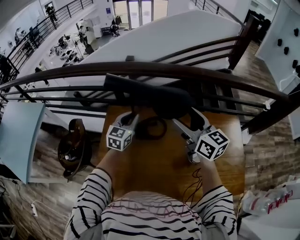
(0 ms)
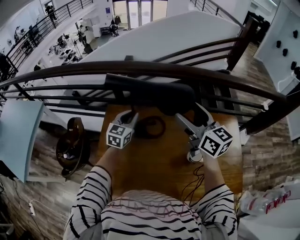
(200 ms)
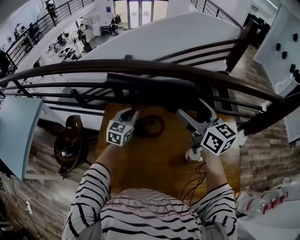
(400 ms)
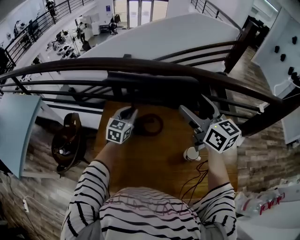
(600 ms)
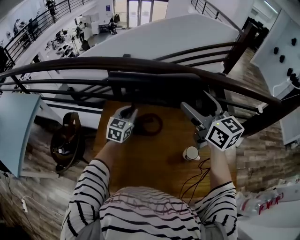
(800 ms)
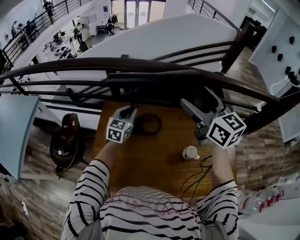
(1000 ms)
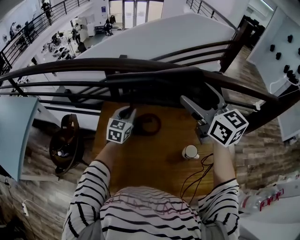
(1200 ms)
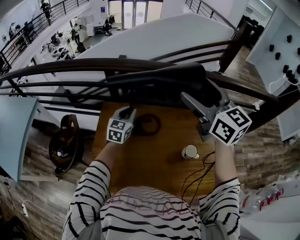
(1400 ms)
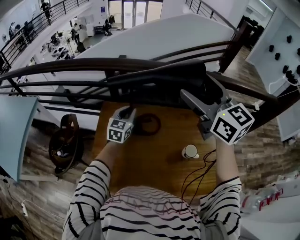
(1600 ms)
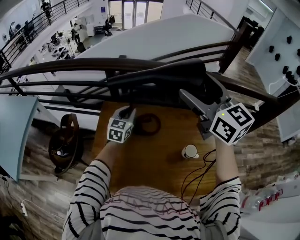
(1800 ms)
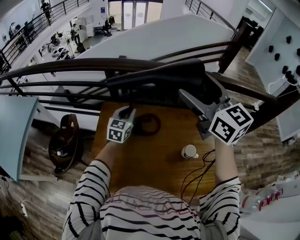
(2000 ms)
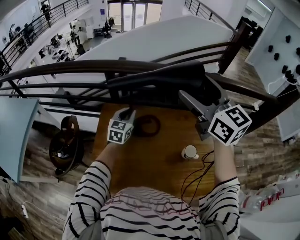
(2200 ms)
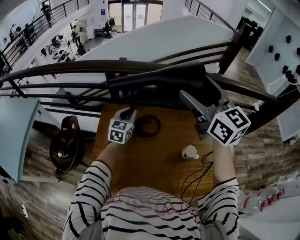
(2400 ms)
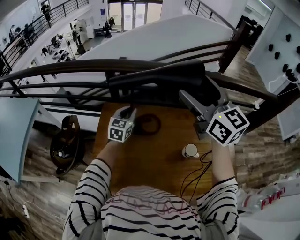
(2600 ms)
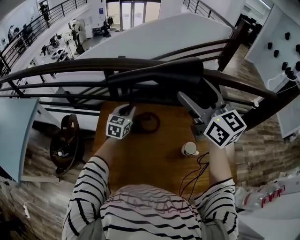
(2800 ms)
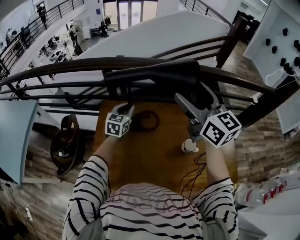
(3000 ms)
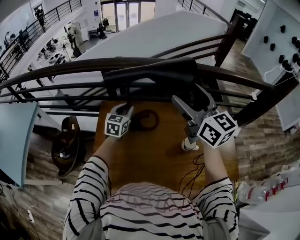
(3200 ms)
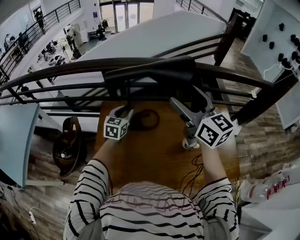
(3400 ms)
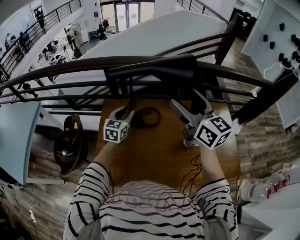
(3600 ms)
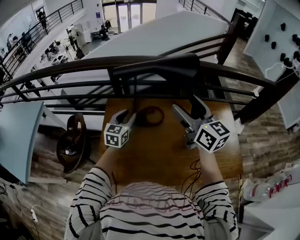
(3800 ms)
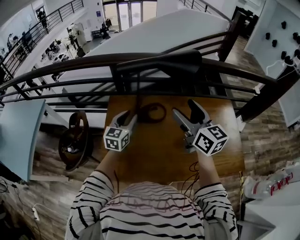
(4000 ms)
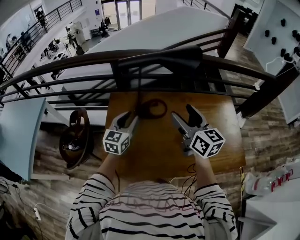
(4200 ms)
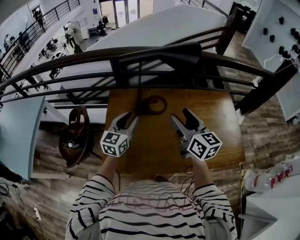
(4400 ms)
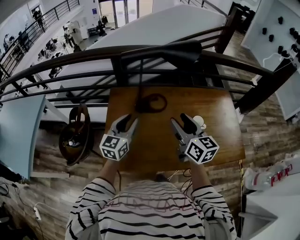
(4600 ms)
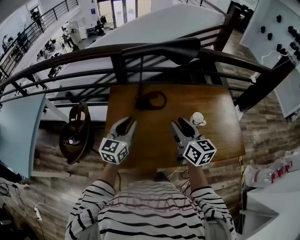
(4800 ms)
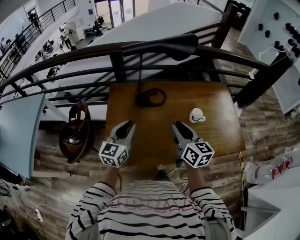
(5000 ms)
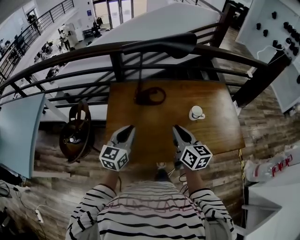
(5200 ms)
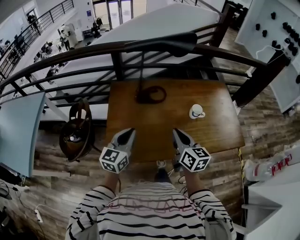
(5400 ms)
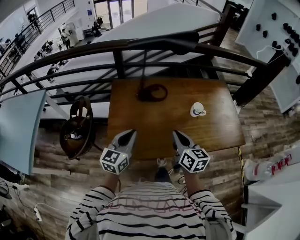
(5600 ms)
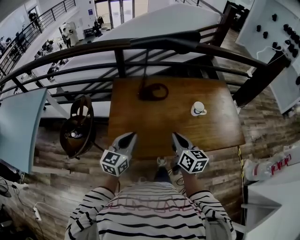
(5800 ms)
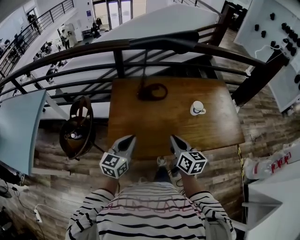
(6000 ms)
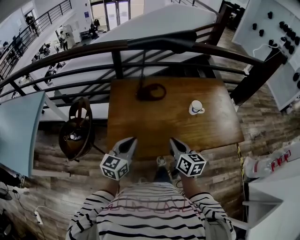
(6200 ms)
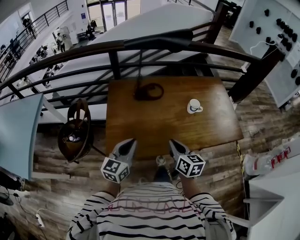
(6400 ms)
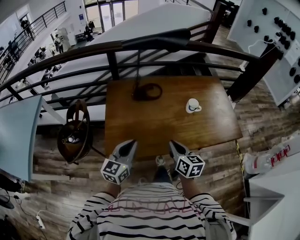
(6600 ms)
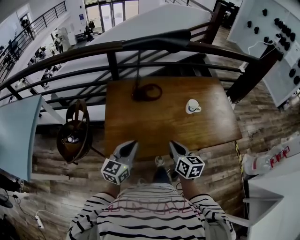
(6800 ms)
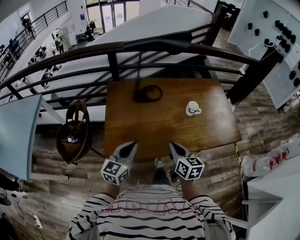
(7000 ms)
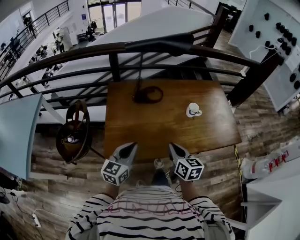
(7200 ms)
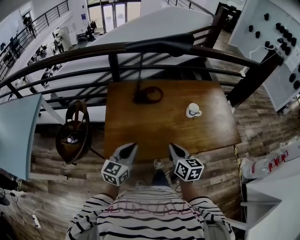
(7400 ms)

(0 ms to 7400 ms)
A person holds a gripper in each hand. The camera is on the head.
0 ms - 1400 ms: The right gripper shifts some 15 cm upward.
1400 ms - 3000 ms: The grippers make only small movements.
3000 ms - 4400 ms: The right gripper is displaced backward and downward by roughly 20 cm, while the left gripper heads backward, covering some 20 cm.
4400 ms - 6000 ms: The left gripper is displaced backward by about 25 cm, and closes its fingers; the right gripper shifts some 25 cm backward and downward, and closes its fingers.
6000 ms - 7400 ms: There are only small adjustments of the grippers.

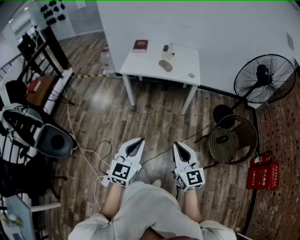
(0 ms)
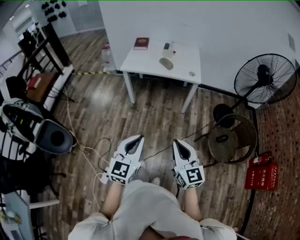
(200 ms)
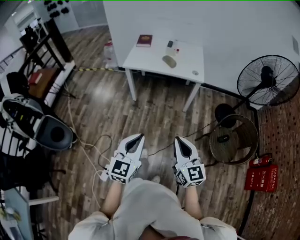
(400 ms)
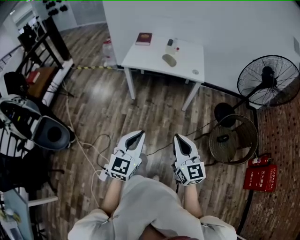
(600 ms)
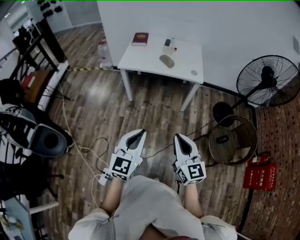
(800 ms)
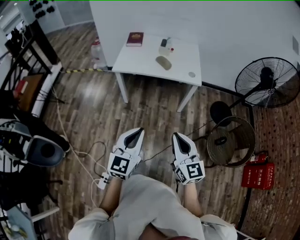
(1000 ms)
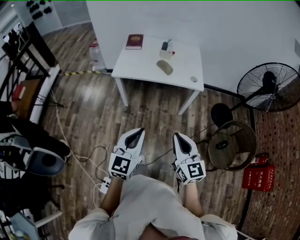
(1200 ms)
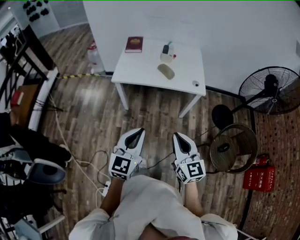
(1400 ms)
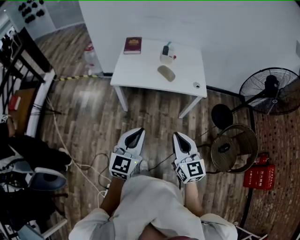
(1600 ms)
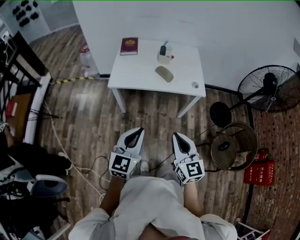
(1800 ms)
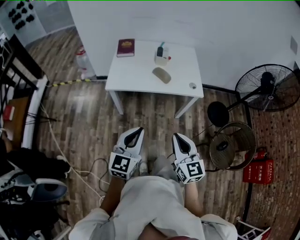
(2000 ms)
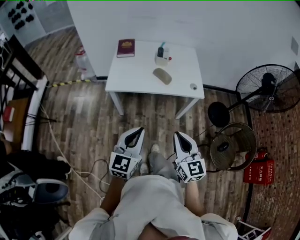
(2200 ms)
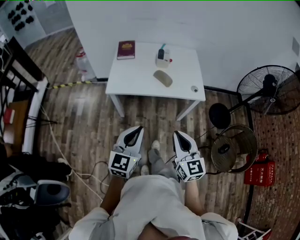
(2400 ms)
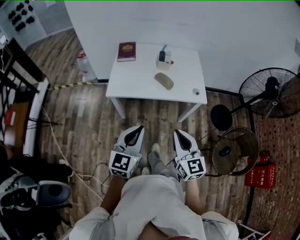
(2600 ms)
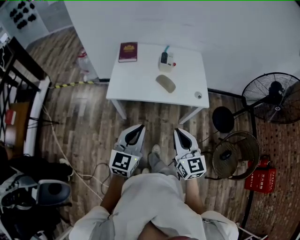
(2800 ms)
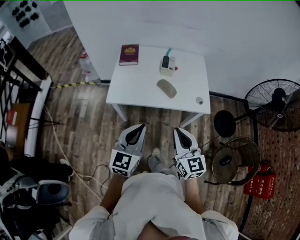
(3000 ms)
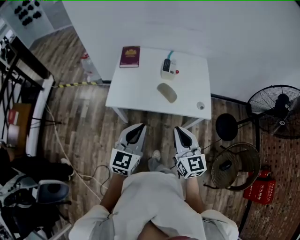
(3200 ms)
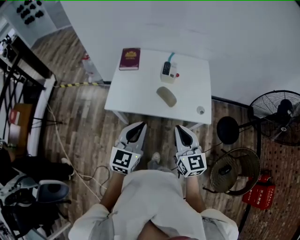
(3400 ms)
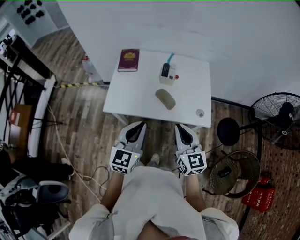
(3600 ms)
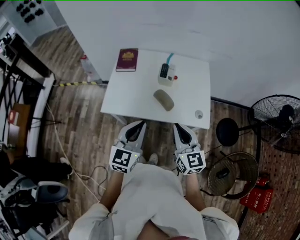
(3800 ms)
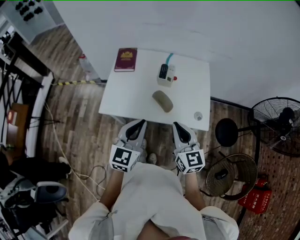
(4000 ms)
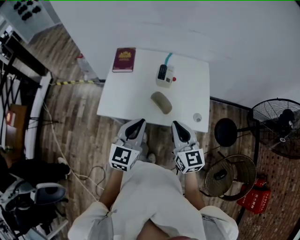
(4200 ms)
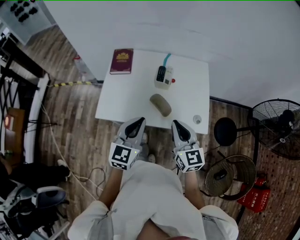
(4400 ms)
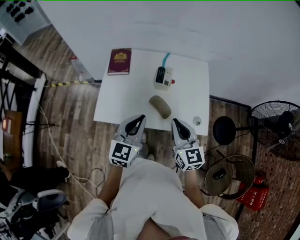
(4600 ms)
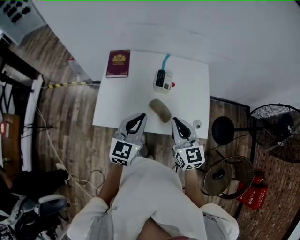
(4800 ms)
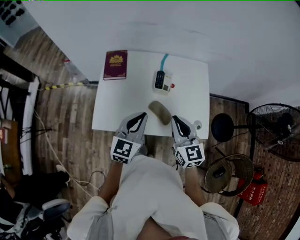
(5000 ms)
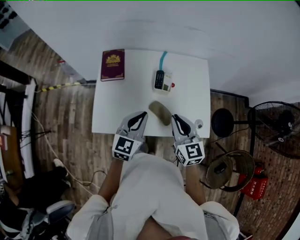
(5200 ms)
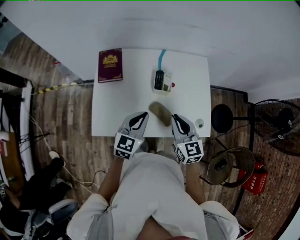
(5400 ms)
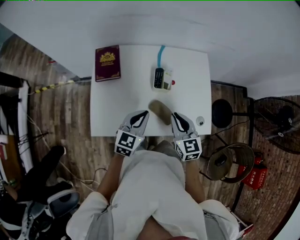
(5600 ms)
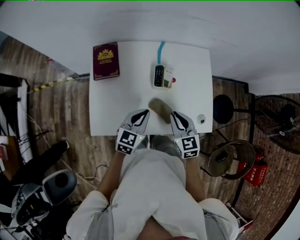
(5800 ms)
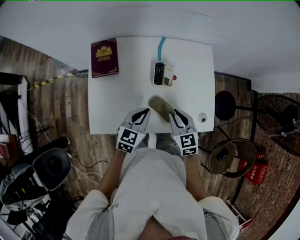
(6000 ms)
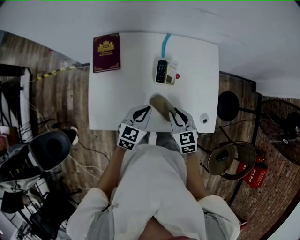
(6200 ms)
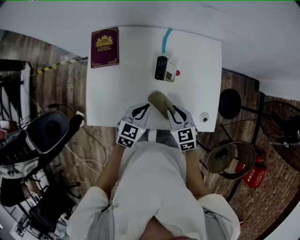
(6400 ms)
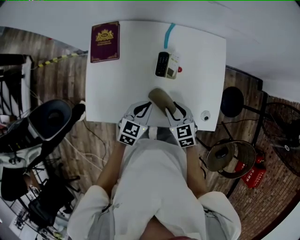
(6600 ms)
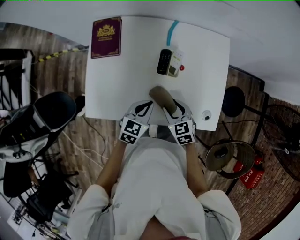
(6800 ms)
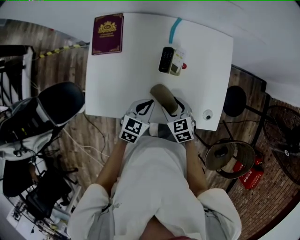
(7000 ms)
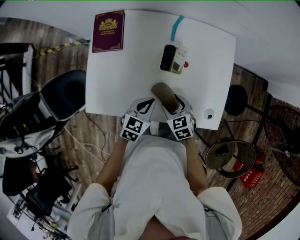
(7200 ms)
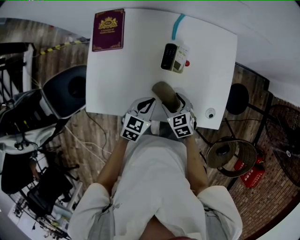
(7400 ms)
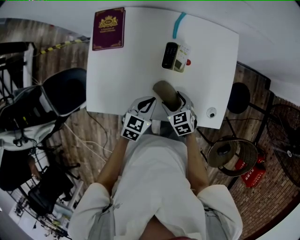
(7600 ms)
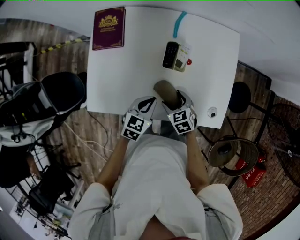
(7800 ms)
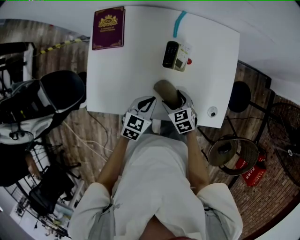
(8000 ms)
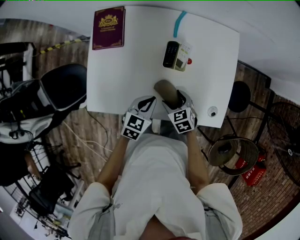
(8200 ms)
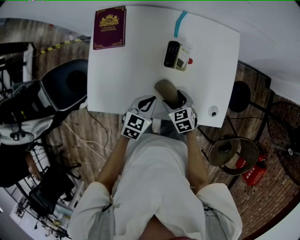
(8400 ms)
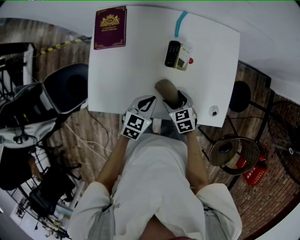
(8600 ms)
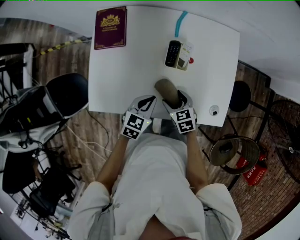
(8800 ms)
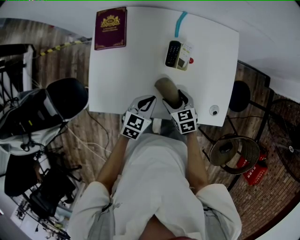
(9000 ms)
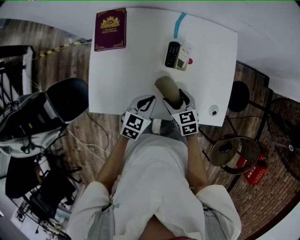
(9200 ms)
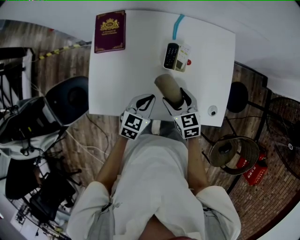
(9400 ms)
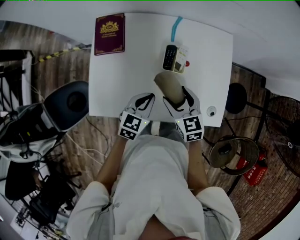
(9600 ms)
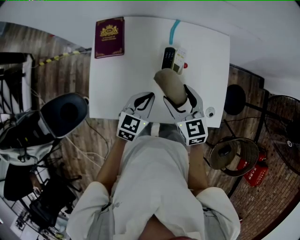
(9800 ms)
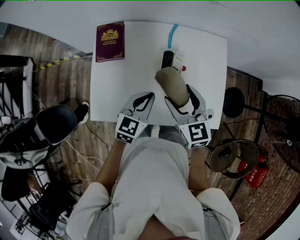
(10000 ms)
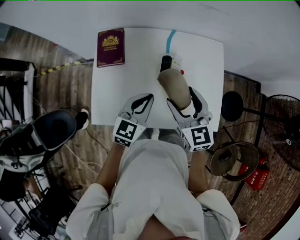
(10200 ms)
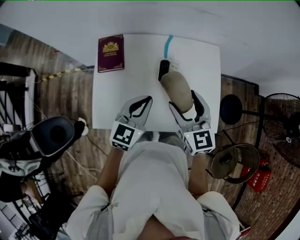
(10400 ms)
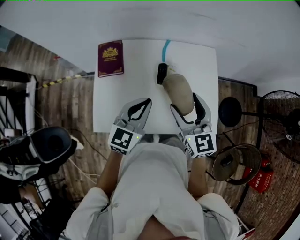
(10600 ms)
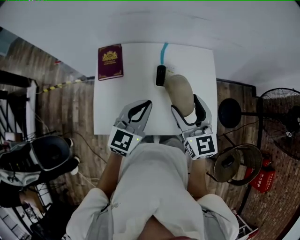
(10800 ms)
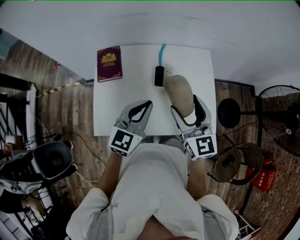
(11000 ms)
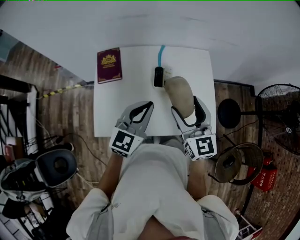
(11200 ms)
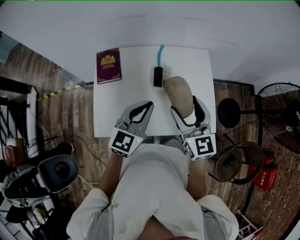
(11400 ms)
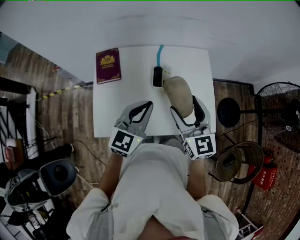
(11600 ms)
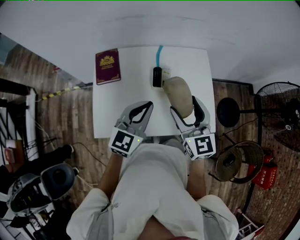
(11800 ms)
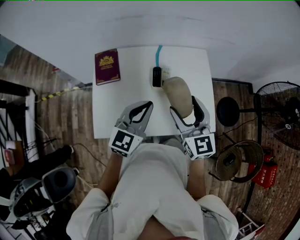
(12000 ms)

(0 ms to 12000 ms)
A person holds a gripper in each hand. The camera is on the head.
0 ms - 1600 ms: Both grippers move forward, some 25 cm.
1600 ms - 3000 ms: The two grippers go about 20 cm forward.
3000 ms - 4400 ms: The two grippers go some 20 cm forward.
4400 ms - 6000 ms: The two grippers go approximately 20 cm forward and downward. The right gripper changes its angle by approximately 30 degrees. Meanwhile the left gripper changes its angle by approximately 20 degrees.
6000 ms - 7600 ms: The right gripper moves downward, about 15 cm, rotates about 20 degrees, and opens. Meanwhile the left gripper goes about 10 cm downward.
7600 ms - 9000 ms: There are only small adjustments of the grippers.
9000 ms - 10400 ms: The two grippers go some 20 cm upward. The right gripper angles its fingers upward, by some 30 degrees. The left gripper turns by some 20 degrees.
10400 ms - 12000 ms: The left gripper changes place by approximately 5 cm; the right gripper ends up some 5 cm from where it was.

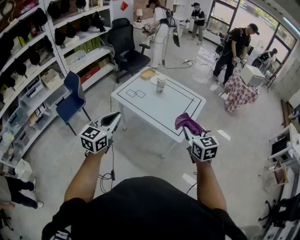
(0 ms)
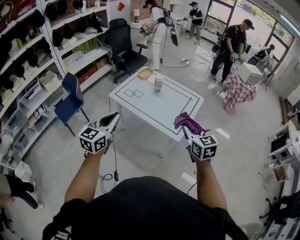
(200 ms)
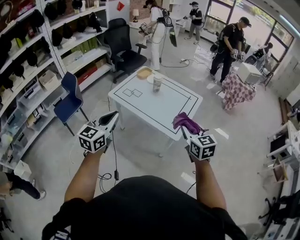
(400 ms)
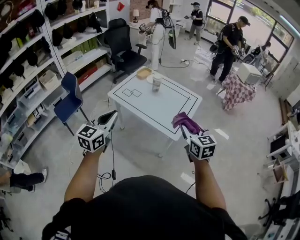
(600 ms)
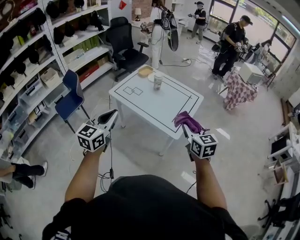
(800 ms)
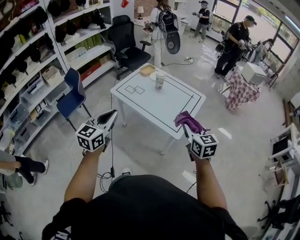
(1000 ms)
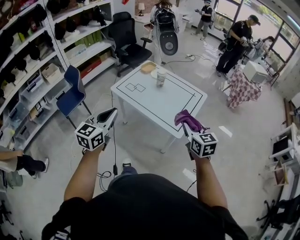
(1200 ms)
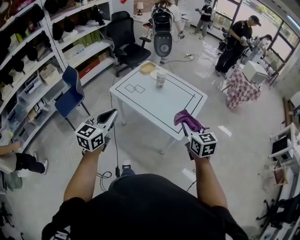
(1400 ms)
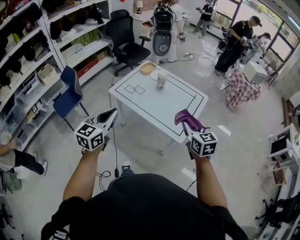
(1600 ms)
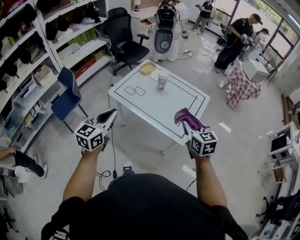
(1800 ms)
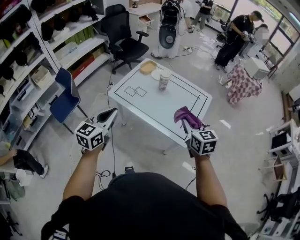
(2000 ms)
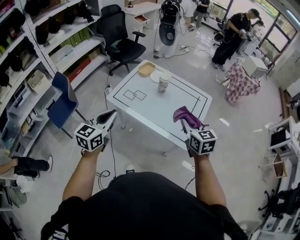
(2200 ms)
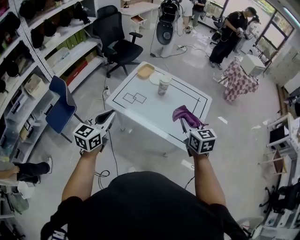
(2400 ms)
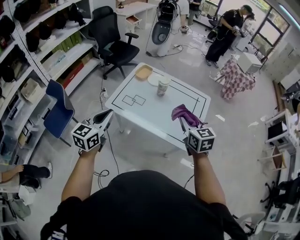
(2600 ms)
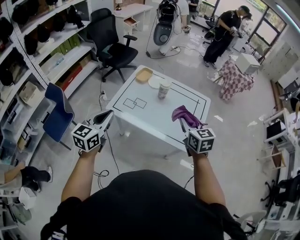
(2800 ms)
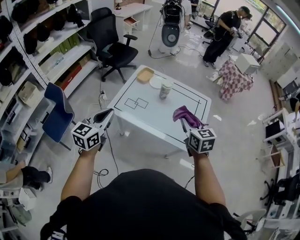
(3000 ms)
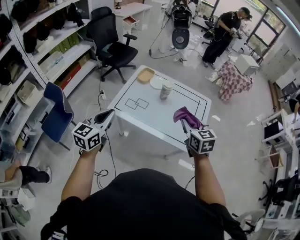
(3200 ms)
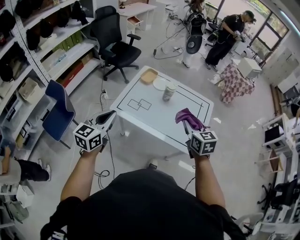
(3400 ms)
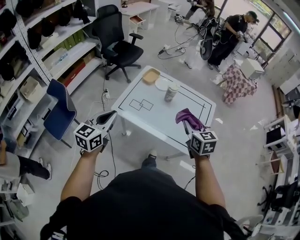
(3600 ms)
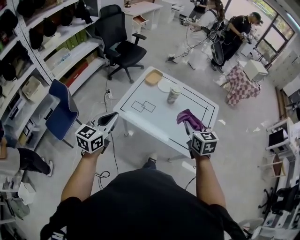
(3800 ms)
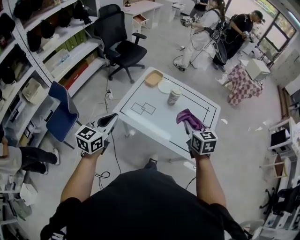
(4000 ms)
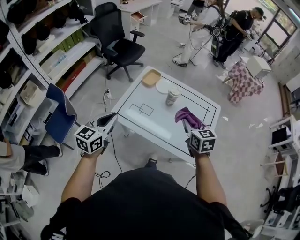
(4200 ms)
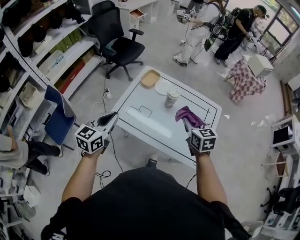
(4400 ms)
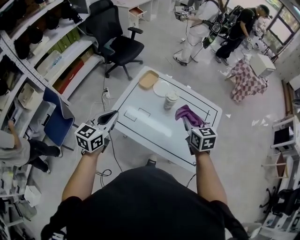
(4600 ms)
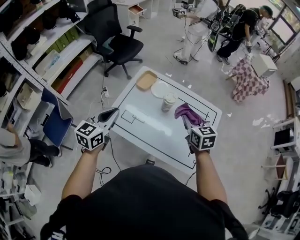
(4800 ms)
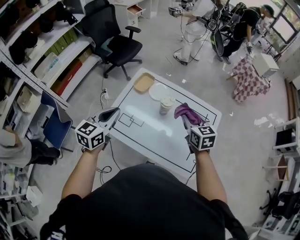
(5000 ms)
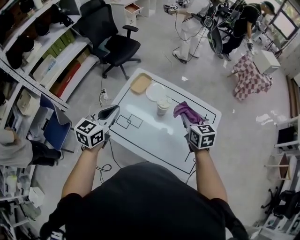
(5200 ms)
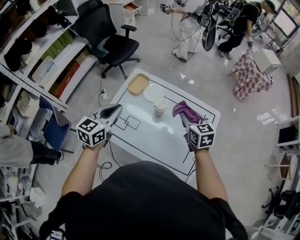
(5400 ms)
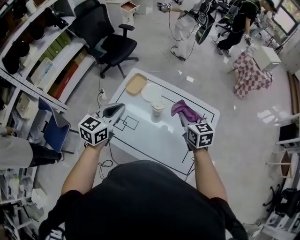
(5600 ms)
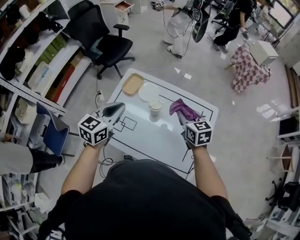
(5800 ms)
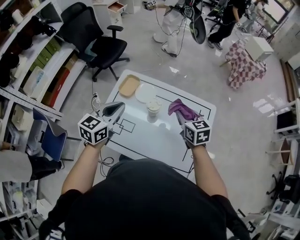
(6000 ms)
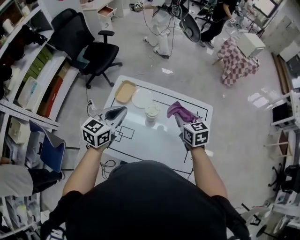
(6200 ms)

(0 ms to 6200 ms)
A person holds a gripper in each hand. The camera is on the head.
0 ms - 1600 ms: Both grippers travel together forward, some 10 cm.
1600 ms - 3200 ms: The right gripper goes approximately 30 cm to the left and forward. Meanwhile the left gripper heads forward and to the left, covering about 35 cm.
3200 ms - 4600 ms: The grippers both shift forward by about 25 cm.
4600 ms - 6200 ms: Both grippers travel together forward and to the right, approximately 25 cm.
